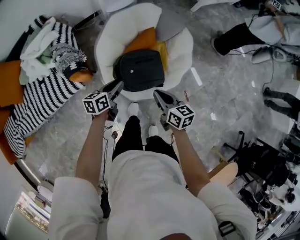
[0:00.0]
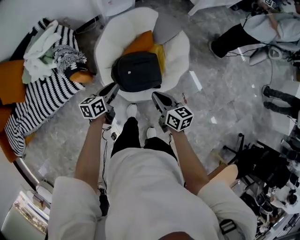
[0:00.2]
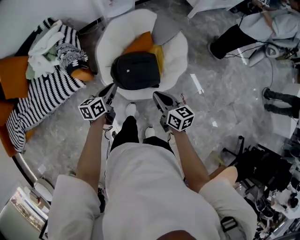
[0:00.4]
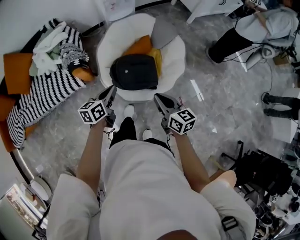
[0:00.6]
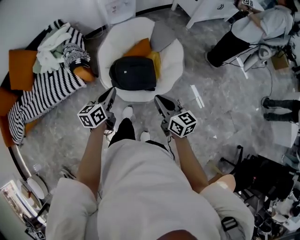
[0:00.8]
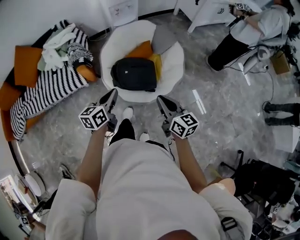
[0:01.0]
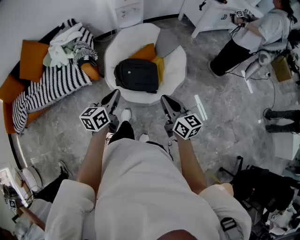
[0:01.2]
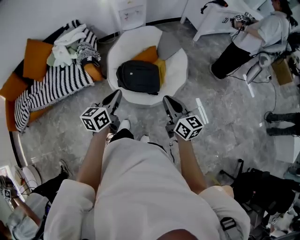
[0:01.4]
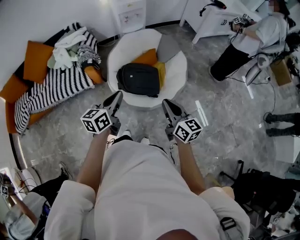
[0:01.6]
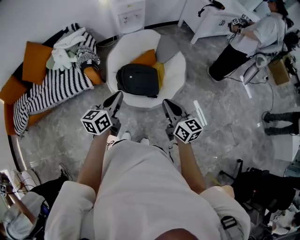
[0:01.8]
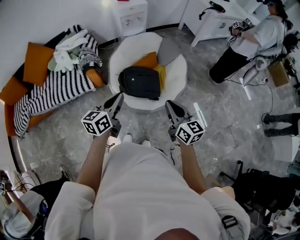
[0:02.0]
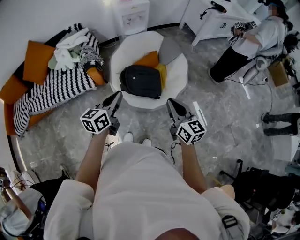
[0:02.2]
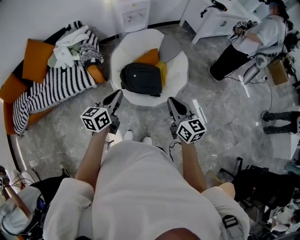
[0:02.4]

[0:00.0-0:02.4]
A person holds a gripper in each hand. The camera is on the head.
0:00.0 to 0:01.2: The left gripper shifts roughly 30 cm upward and backward, and changes its angle by some 20 degrees. Meanwhile the right gripper heads upward, backward and to the right, covering about 25 cm, and changes its angle by approximately 20 degrees.
0:01.2 to 0:02.4: The right gripper ends up approximately 5 cm from where it was. Meanwhile the left gripper travels to the left by some 5 cm.

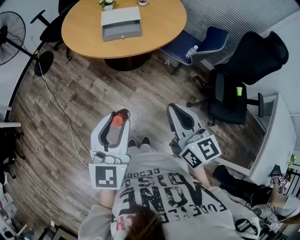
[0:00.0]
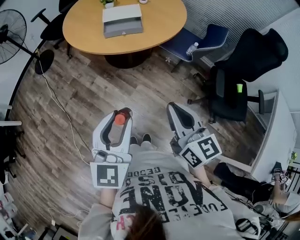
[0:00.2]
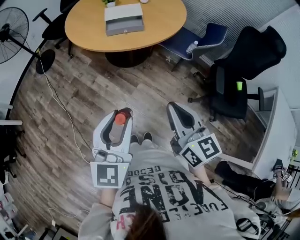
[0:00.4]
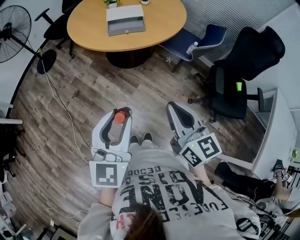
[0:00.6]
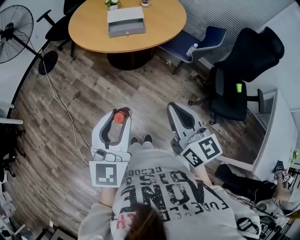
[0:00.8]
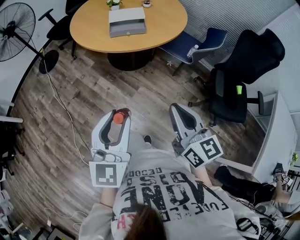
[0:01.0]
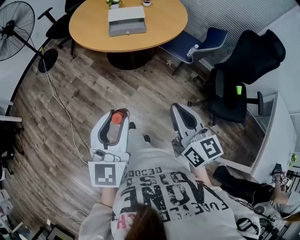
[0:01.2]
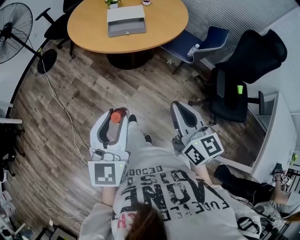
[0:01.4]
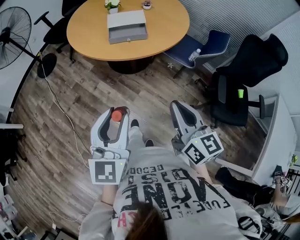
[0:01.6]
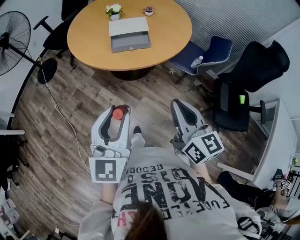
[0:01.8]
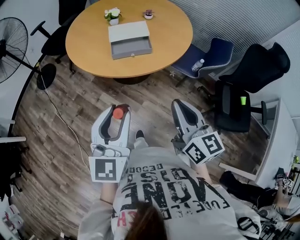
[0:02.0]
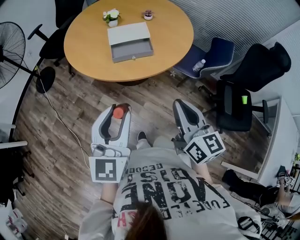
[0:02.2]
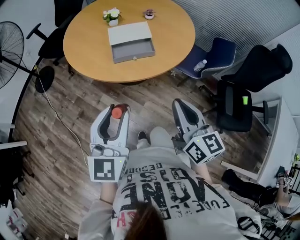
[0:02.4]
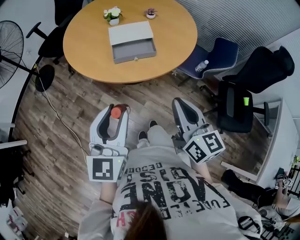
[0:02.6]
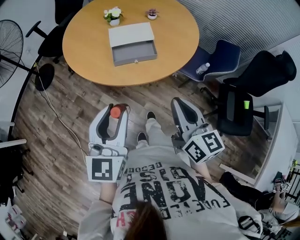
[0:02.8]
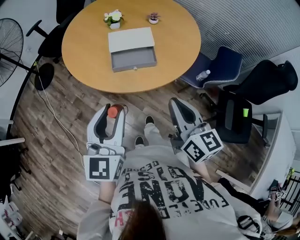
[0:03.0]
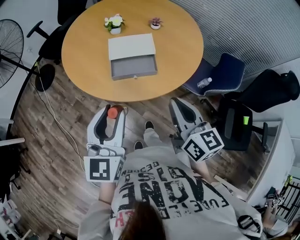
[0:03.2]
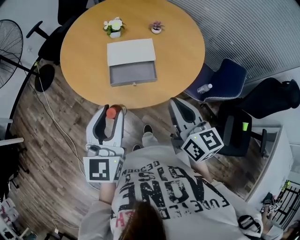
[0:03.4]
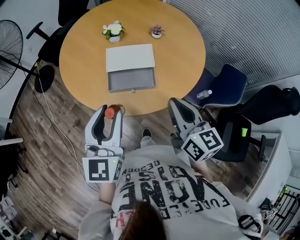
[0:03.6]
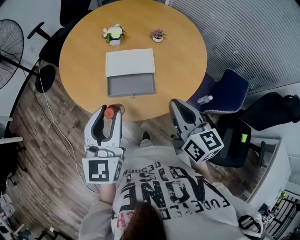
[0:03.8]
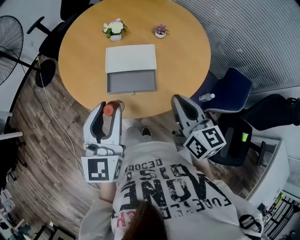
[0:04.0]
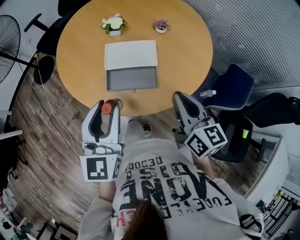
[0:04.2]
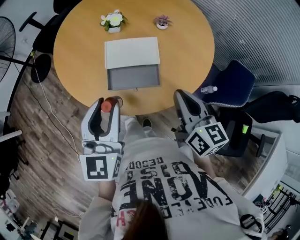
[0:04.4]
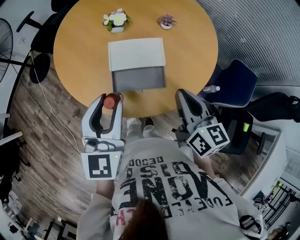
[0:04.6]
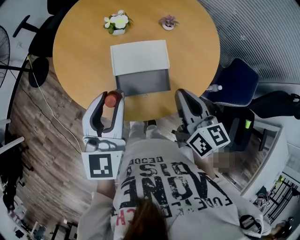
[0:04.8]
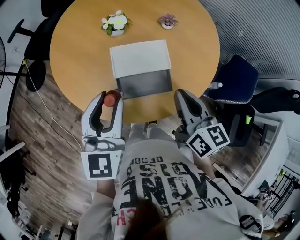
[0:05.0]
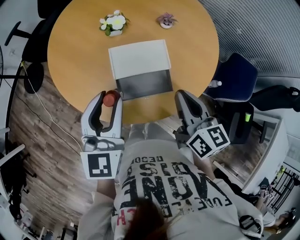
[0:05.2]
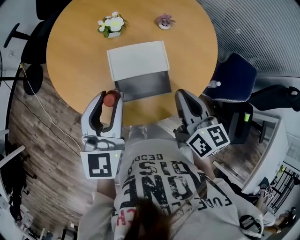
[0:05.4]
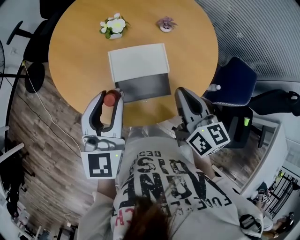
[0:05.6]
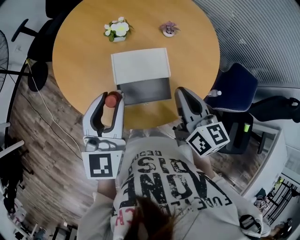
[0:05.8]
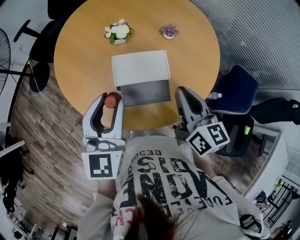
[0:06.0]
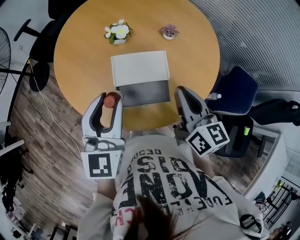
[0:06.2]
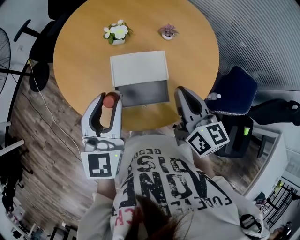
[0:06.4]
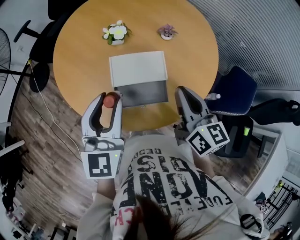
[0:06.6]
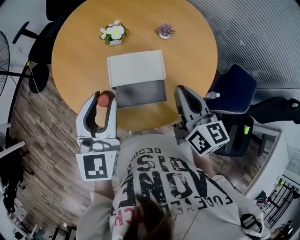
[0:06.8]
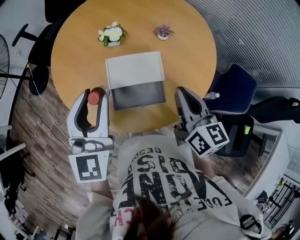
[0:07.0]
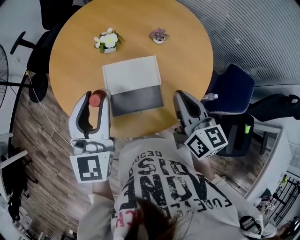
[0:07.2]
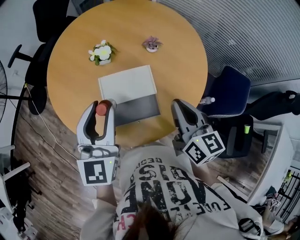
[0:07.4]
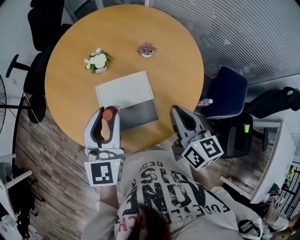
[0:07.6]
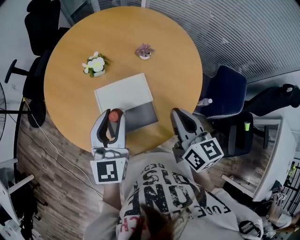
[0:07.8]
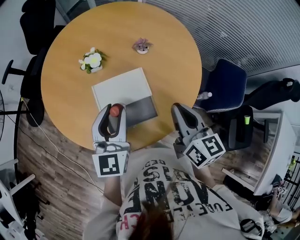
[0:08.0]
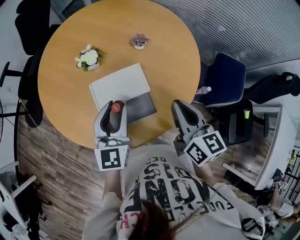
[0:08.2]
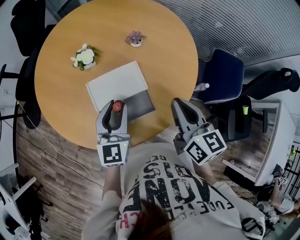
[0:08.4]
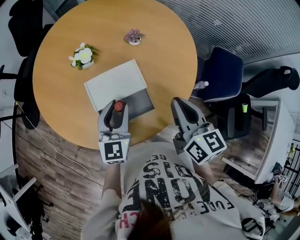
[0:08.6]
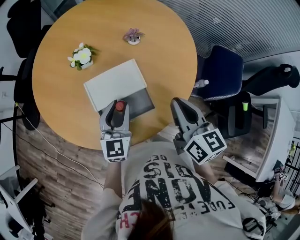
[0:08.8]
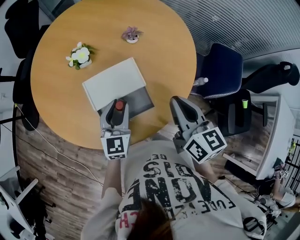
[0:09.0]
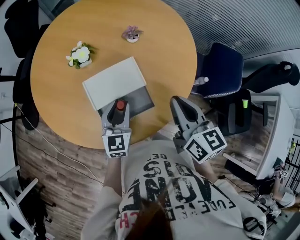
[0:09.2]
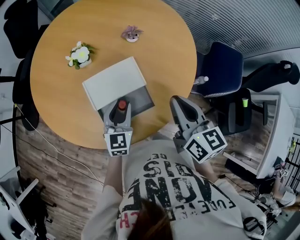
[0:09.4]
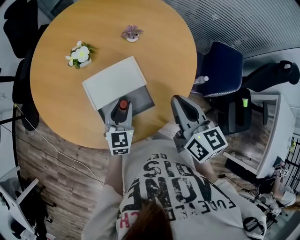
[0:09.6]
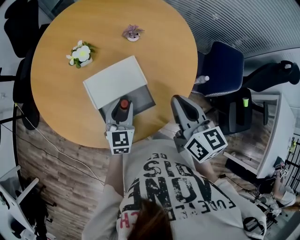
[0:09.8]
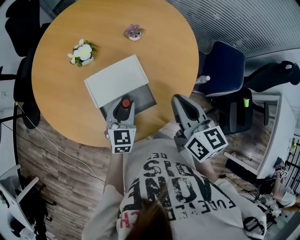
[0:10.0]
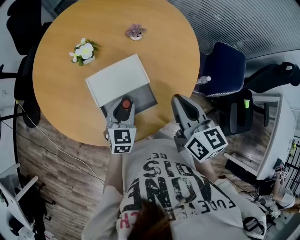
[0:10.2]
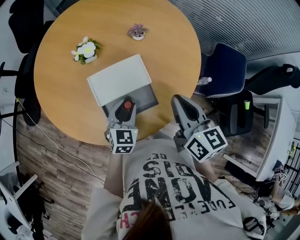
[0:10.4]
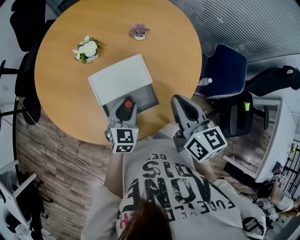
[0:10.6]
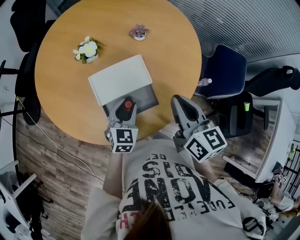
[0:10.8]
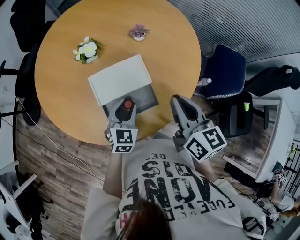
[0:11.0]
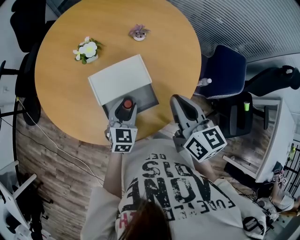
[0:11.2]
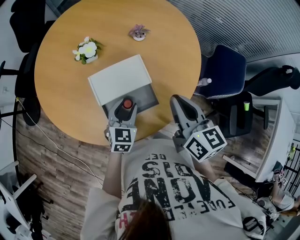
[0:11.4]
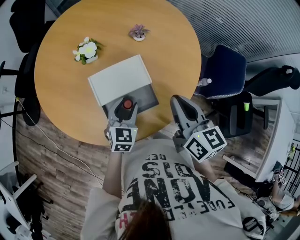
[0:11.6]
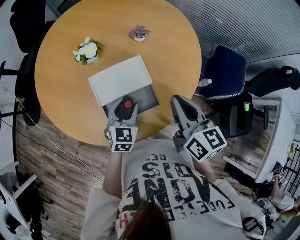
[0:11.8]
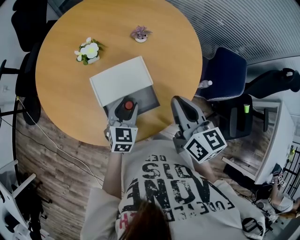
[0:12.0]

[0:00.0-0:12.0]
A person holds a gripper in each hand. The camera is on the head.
0:00.0 to 0:01.6: The right gripper reaches about 5 cm backward, then returns. Meanwhile the left gripper moves some 5 cm backward and comes back.
0:01.6 to 0:03.0: Both grippers travel together forward, some 25 cm.
0:03.0 to 0:04.4: The grippers both shift forward by approximately 20 cm.
0:04.4 to 0:06.0: The grippers both shift forward by approximately 10 cm.
0:06.0 to 0:07.6: The left gripper moves some 5 cm, while the right gripper heads to the right, covering some 5 cm.
0:07.6 to 0:09.0: The left gripper moves downward, roughly 15 cm.
0:09.0 to 0:10.4: The left gripper travels downward by some 5 cm.
0:10.4 to 0:12.0: The two grippers keep their place.

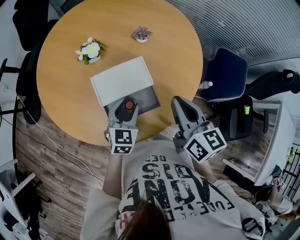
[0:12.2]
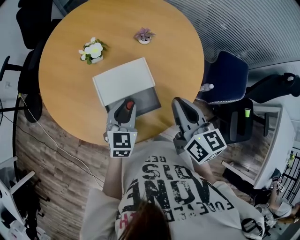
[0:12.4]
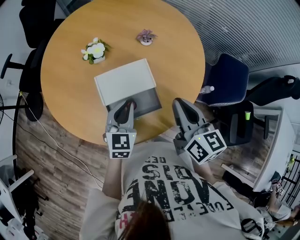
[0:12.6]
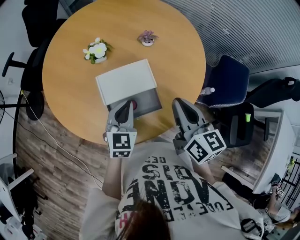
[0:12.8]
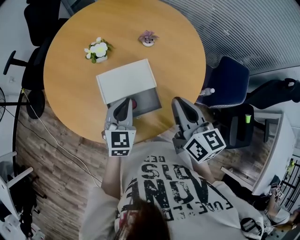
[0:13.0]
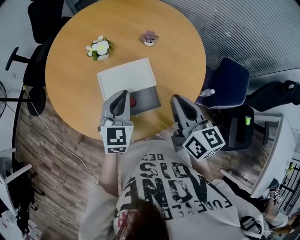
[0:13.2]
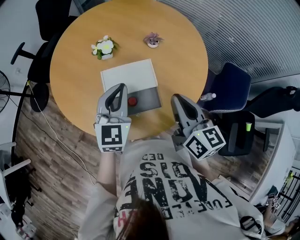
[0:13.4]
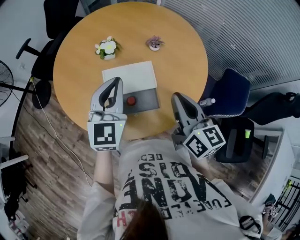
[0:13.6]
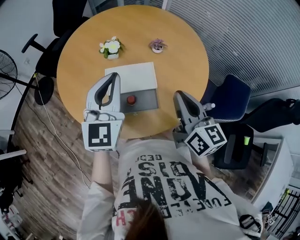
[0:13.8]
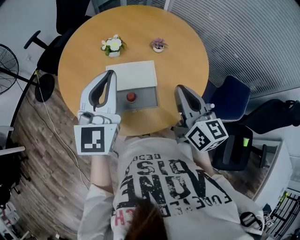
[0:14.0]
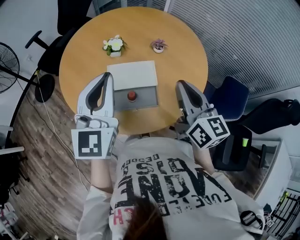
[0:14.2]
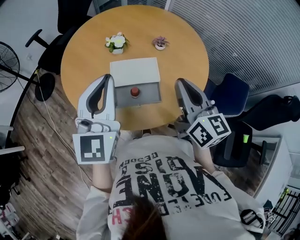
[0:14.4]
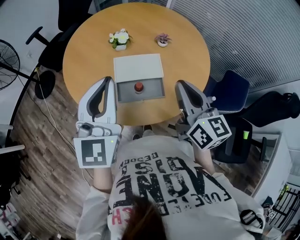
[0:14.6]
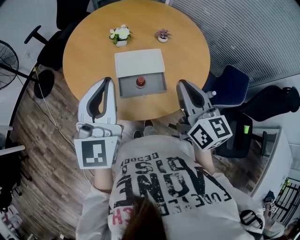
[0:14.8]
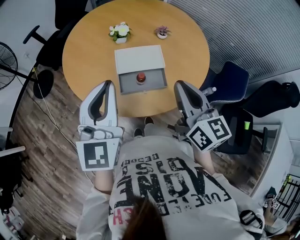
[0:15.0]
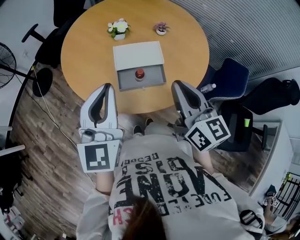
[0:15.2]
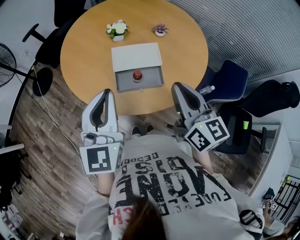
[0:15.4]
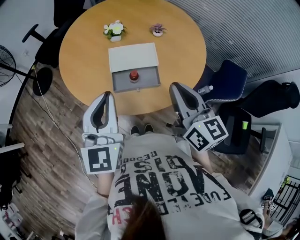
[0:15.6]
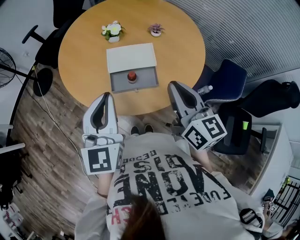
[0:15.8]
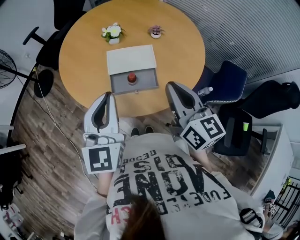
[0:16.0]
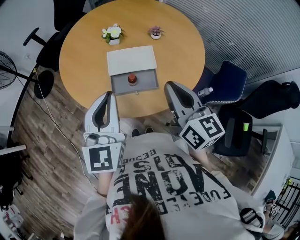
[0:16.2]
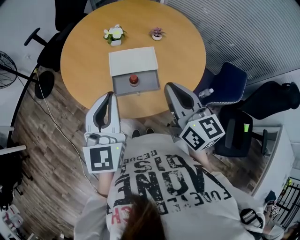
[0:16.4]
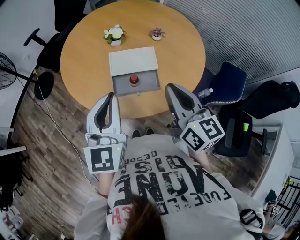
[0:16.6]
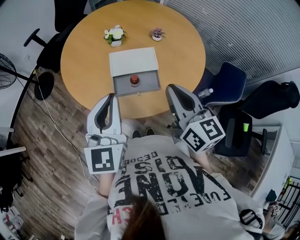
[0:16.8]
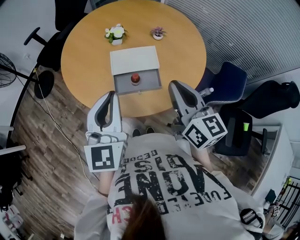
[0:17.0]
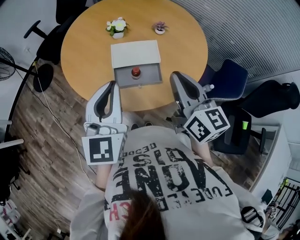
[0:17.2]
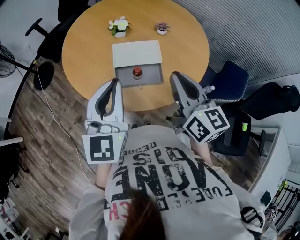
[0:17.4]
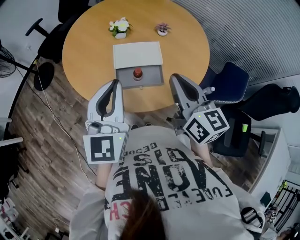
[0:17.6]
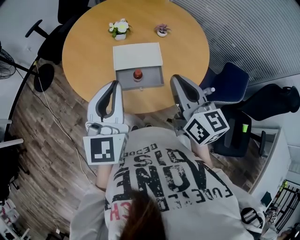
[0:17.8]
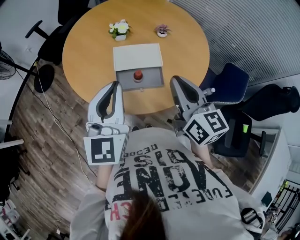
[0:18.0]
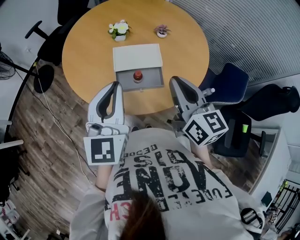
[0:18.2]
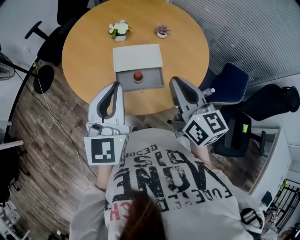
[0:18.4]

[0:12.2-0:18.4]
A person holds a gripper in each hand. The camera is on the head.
0:12.2 to 0:13.8: The left gripper is displaced upward by roughly 25 cm, turns by roughly 40 degrees, and closes its fingers.
0:13.8 to 0:15.4: The two grippers go about 15 cm backward and to the left.
0:15.4 to 0:18.4: The grippers stay close to where they were, moving slightly.

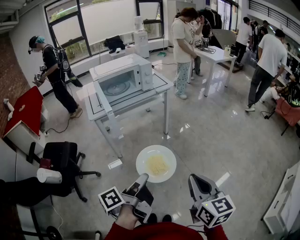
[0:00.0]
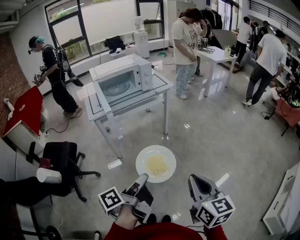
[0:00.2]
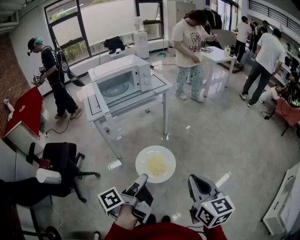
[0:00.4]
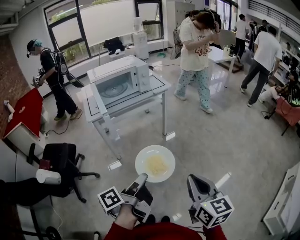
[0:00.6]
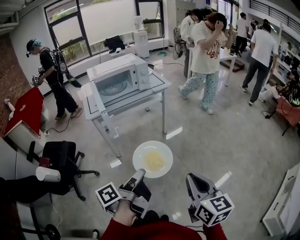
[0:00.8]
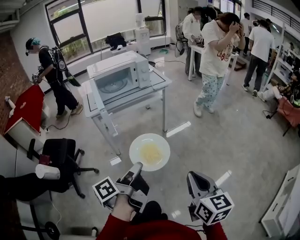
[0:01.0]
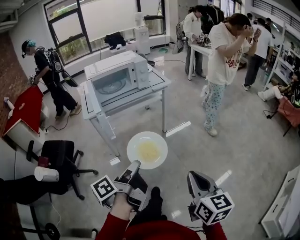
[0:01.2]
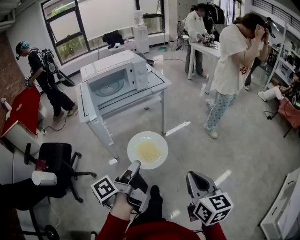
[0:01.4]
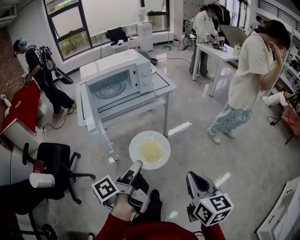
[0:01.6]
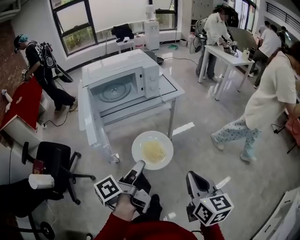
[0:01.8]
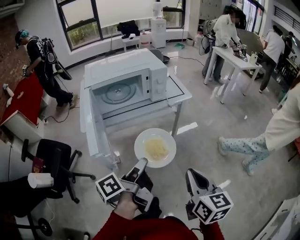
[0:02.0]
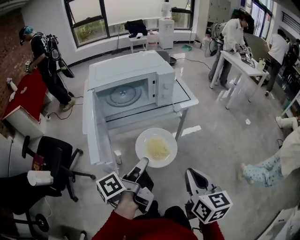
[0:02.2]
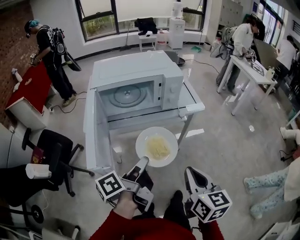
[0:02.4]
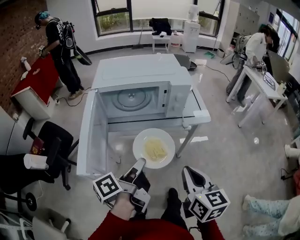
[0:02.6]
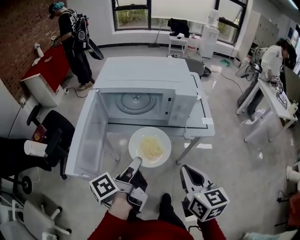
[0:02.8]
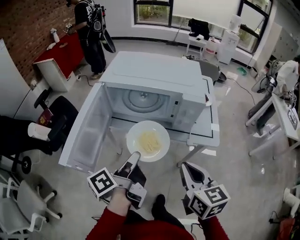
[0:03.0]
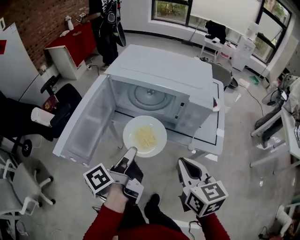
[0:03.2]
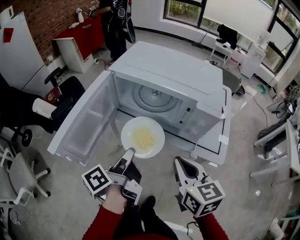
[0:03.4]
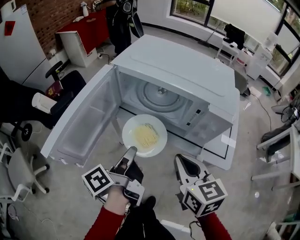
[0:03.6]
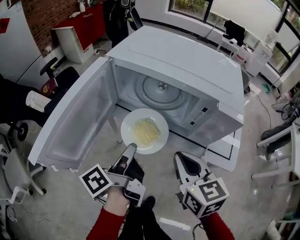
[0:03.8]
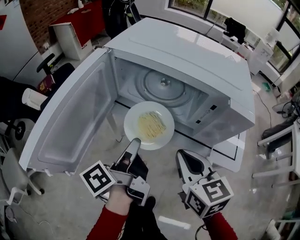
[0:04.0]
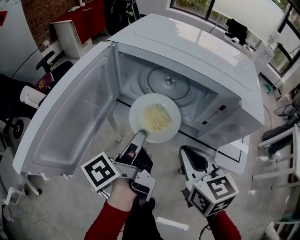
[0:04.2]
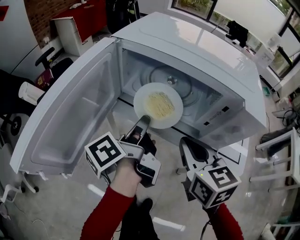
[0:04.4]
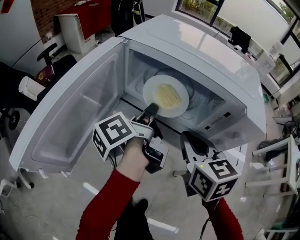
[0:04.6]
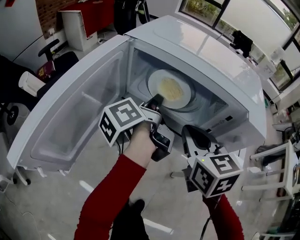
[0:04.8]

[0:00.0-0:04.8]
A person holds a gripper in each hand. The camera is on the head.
0:00.0 to 0:01.6: Both grippers travel together forward, about 15 cm.
0:01.6 to 0:03.2: The left gripper ends up about 25 cm from where it was, and changes its angle by some 50 degrees. The right gripper shifts by some 40 cm, and rotates about 50 degrees.
0:03.2 to 0:04.8: The grippers both shift forward by roughly 20 cm.
